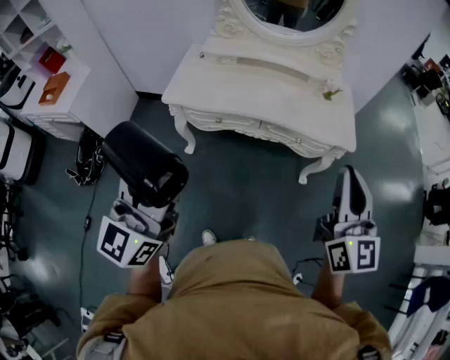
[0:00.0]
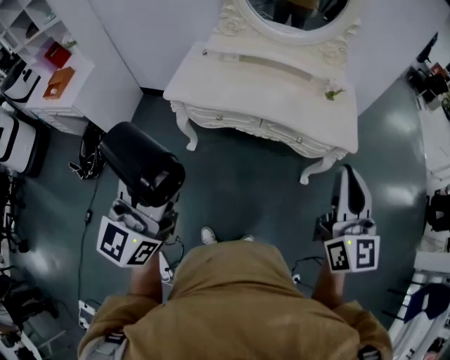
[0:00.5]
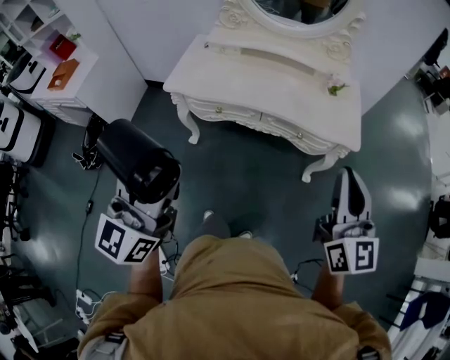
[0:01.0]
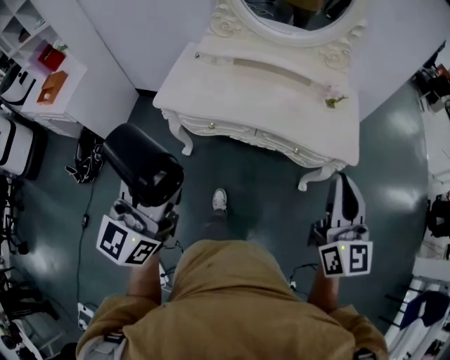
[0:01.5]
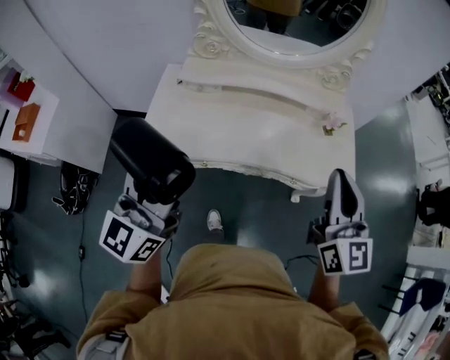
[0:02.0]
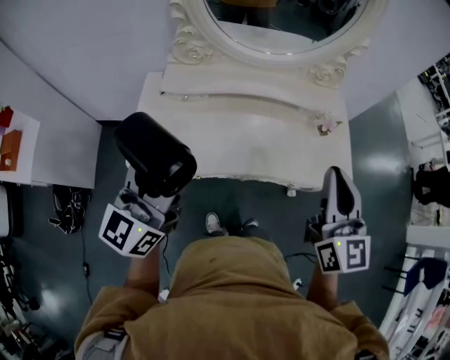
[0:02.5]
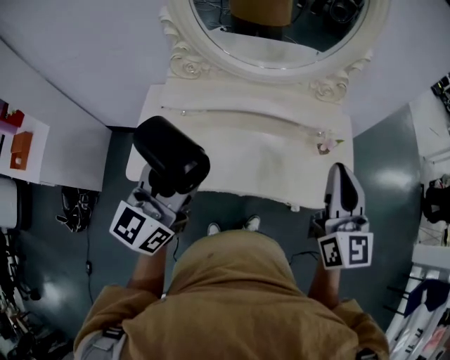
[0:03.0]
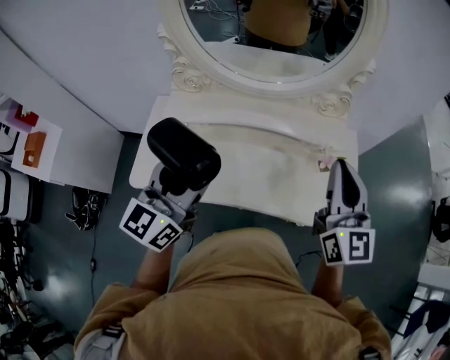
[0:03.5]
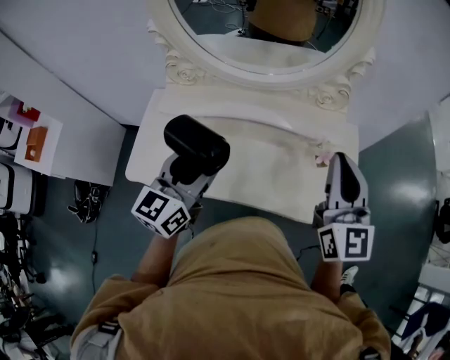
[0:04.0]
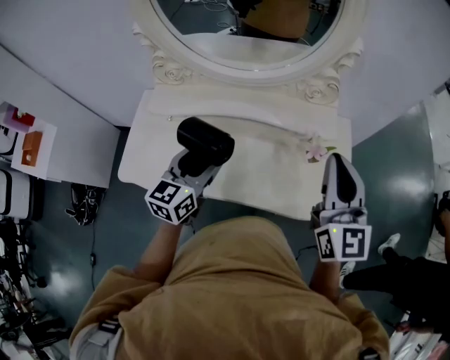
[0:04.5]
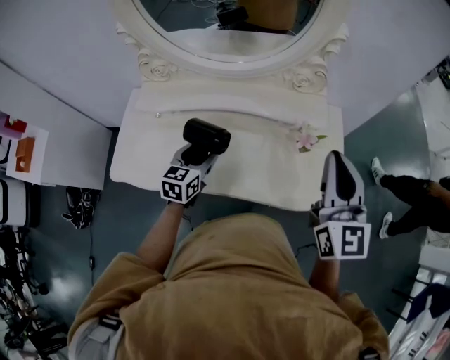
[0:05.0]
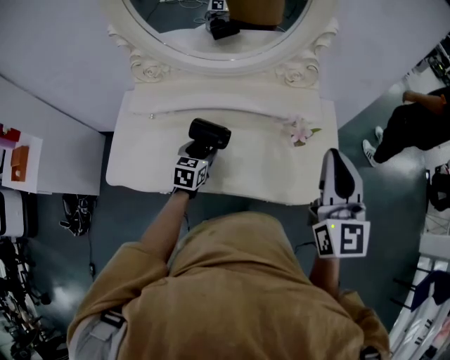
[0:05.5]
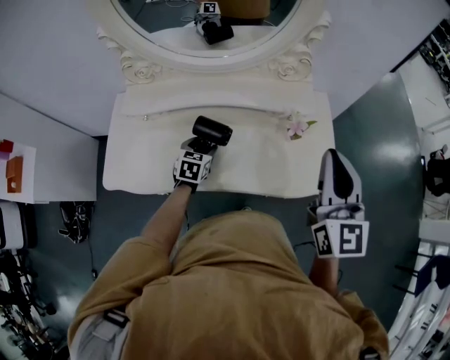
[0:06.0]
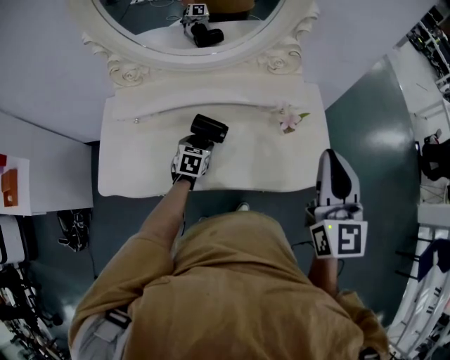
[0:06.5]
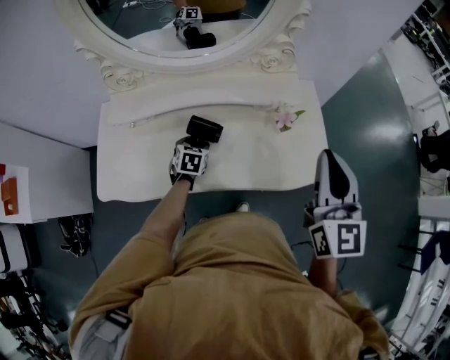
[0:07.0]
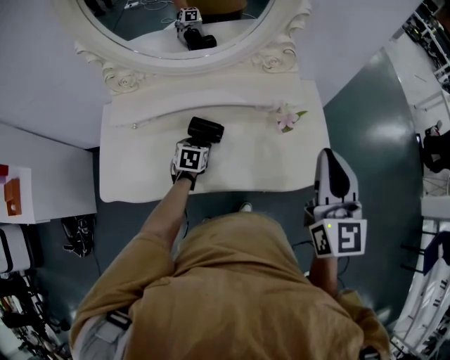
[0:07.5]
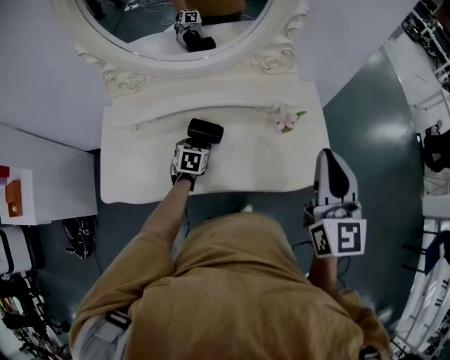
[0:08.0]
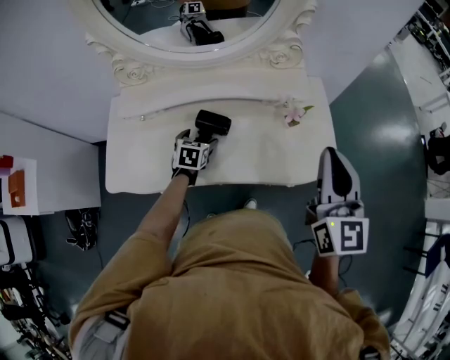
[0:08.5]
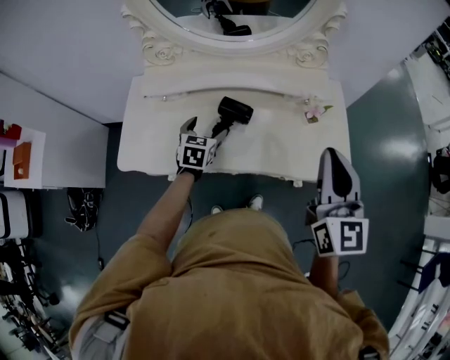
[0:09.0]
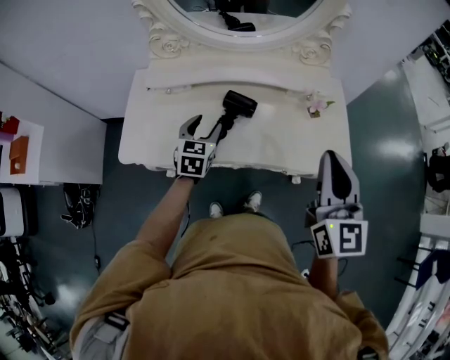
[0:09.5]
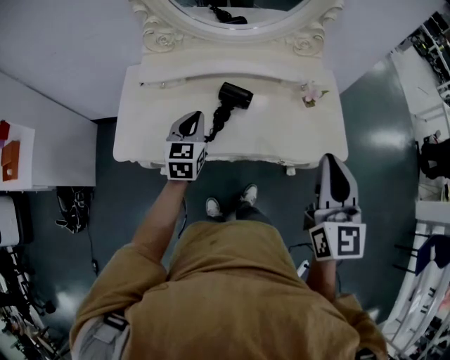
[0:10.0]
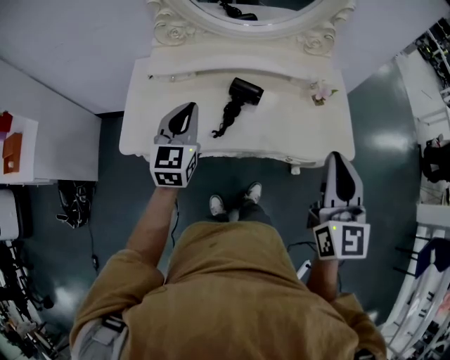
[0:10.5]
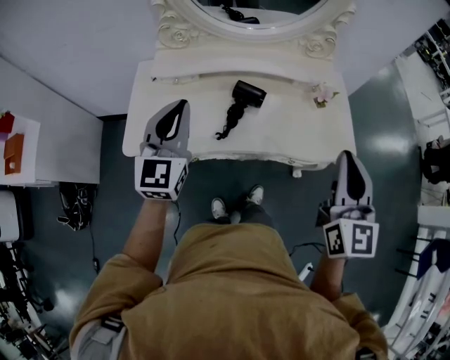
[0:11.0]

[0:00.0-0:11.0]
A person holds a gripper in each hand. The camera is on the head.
0:00.0 to 0:02.0: Both grippers move forward, approximately 25 cm.
0:02.0 to 0:03.5: The left gripper travels forward and to the right by approximately 25 cm; the right gripper goes about 20 cm forward.
0:03.5 to 0:05.5: The left gripper shifts about 30 cm downward, and tilts its fingers about 40 degrees downward. Meanwhile the right gripper goes some 10 cm to the right.
0:05.5 to 0:07.5: The left gripper heads downward, covering about 5 cm.
0:07.5 to 0:09.0: The right gripper is displaced to the left and backward by about 10 cm. The left gripper moves upward and backward, approximately 10 cm, and opens.
0:09.0 to 0:11.0: The left gripper heads upward, backward and to the left, covering roughly 30 cm, tips its fingers upward by roughly 40 degrees, and closes its fingers, while the right gripper goes approximately 10 cm backward.

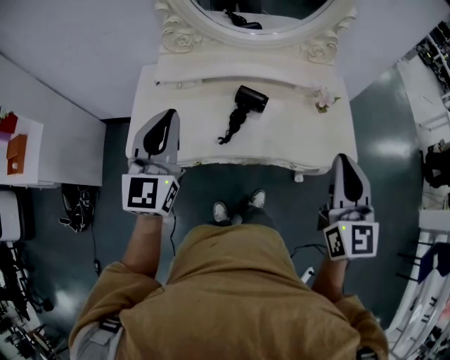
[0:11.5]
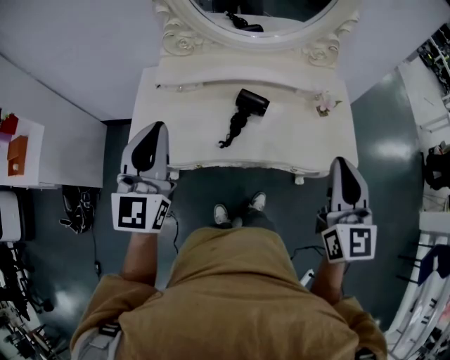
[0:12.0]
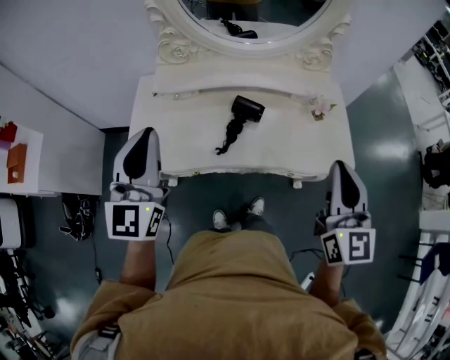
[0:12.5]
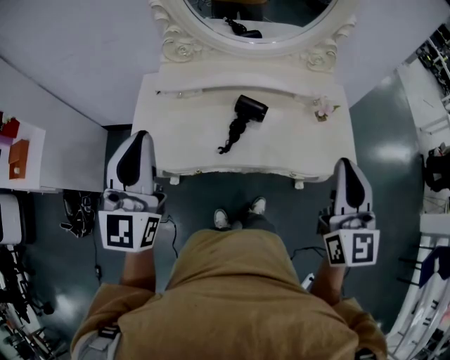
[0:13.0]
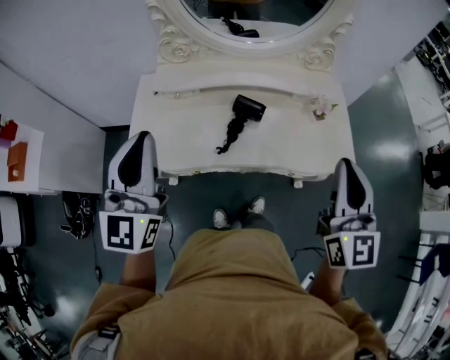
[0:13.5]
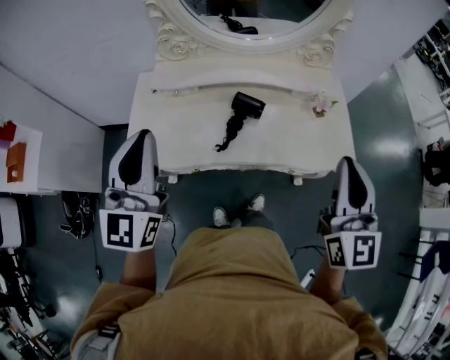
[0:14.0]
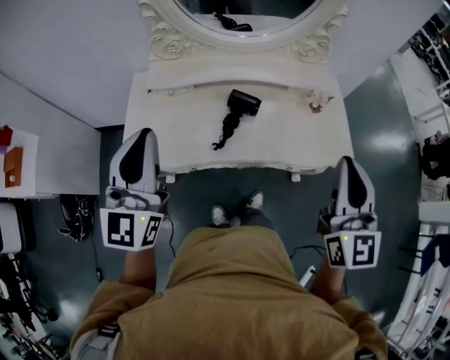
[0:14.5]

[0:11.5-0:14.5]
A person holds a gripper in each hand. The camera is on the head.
0:11.5 to 0:13.0: The left gripper travels upward by some 5 cm.
0:13.0 to 0:14.5: The grippers move only a little.

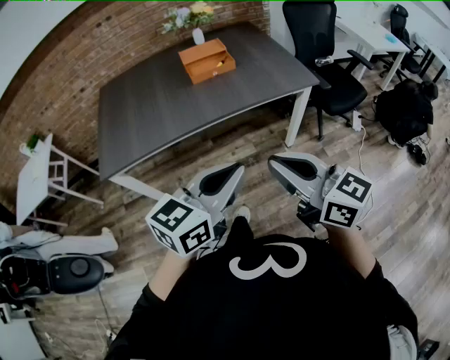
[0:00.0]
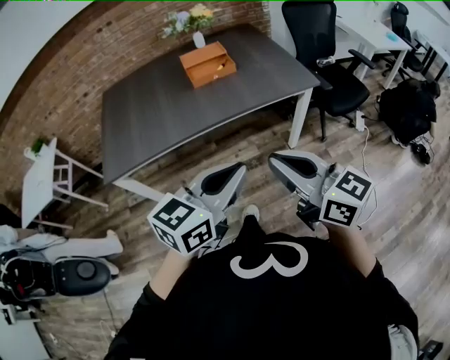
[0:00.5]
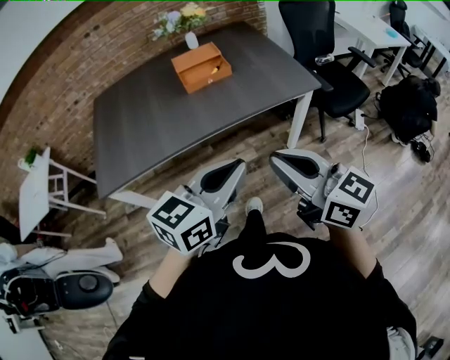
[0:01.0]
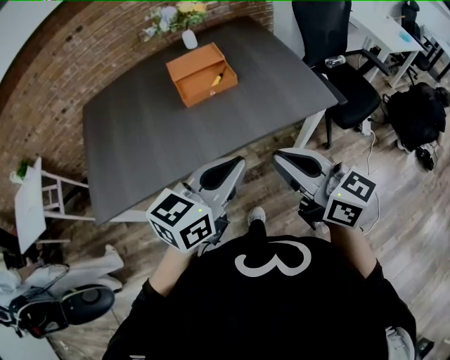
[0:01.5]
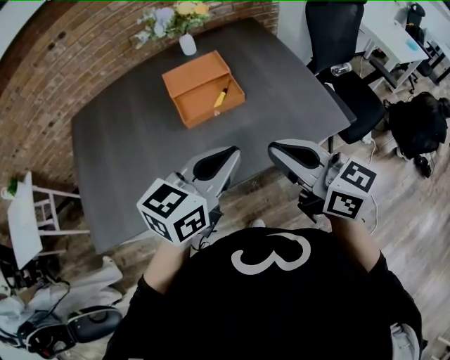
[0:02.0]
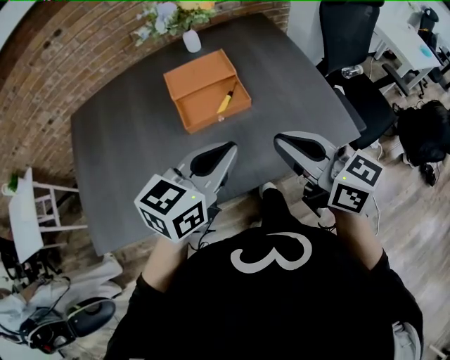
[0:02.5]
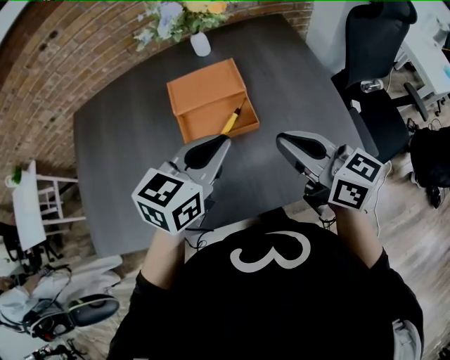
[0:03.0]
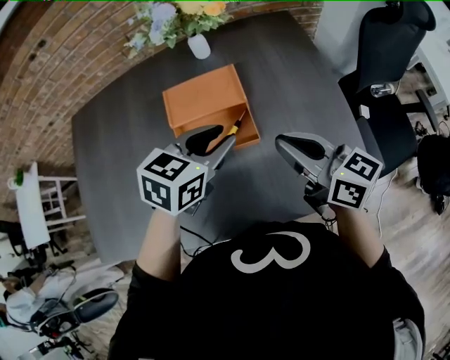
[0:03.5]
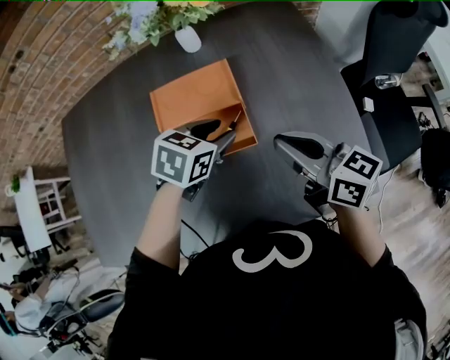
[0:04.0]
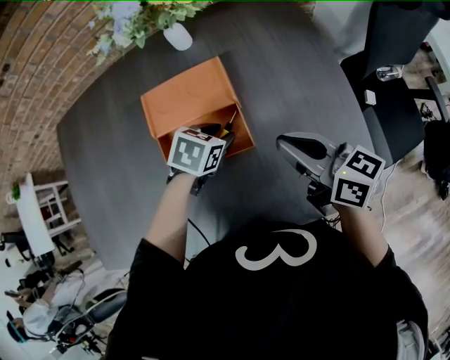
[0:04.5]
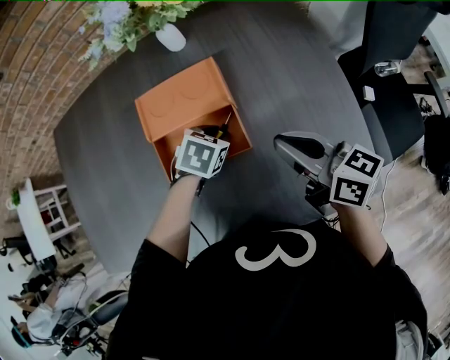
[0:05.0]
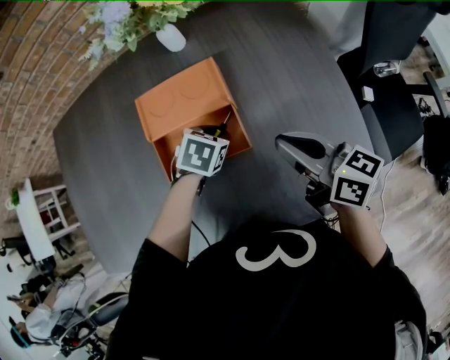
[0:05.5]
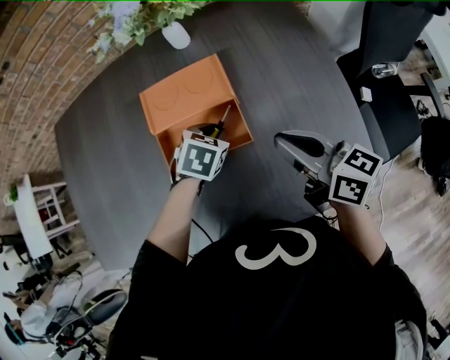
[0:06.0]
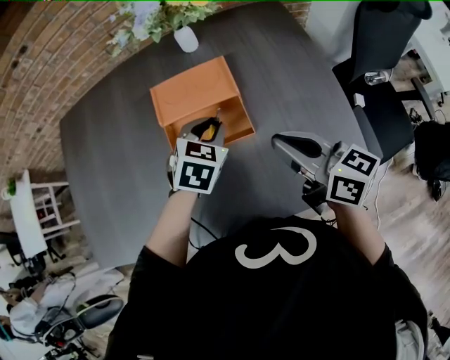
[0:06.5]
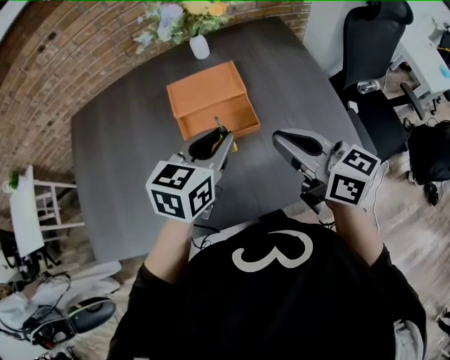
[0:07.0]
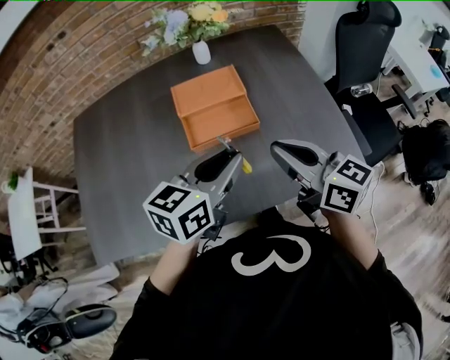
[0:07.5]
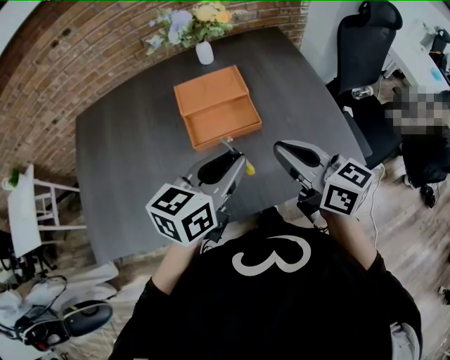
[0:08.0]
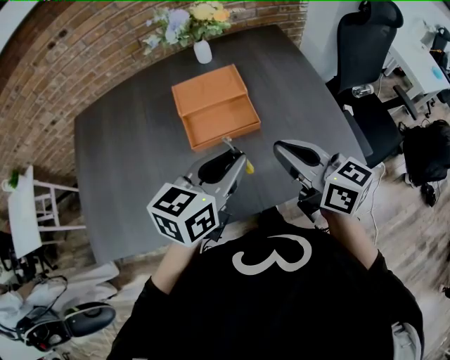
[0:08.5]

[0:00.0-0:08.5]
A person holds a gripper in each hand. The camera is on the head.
0:00.0 to 0:02.0: Both grippers travel together forward, roughly 35 cm.
0:02.0 to 0:04.0: The right gripper goes approximately 30 cm forward; the left gripper moves forward and downward, some 35 cm, points its fingers approximately 40 degrees further downward, and opens up.
0:04.0 to 0:06.5: The left gripper travels downward and back again, roughly 10 cm each way, changes its angle by roughly 20 degrees, and closes.
0:06.5 to 0:08.5: The left gripper heads backward and upward, covering approximately 20 cm, and turns by about 40 degrees. Meanwhile the right gripper heads backward, covering roughly 10 cm.

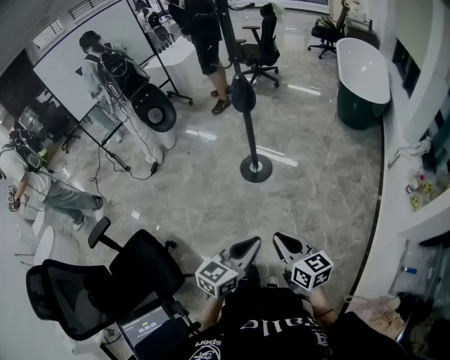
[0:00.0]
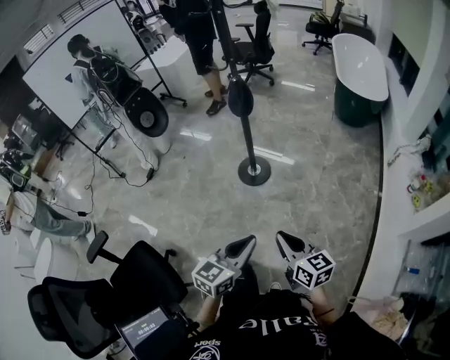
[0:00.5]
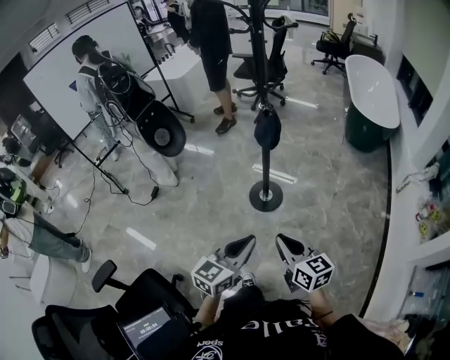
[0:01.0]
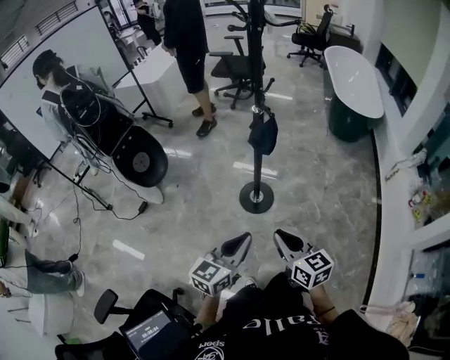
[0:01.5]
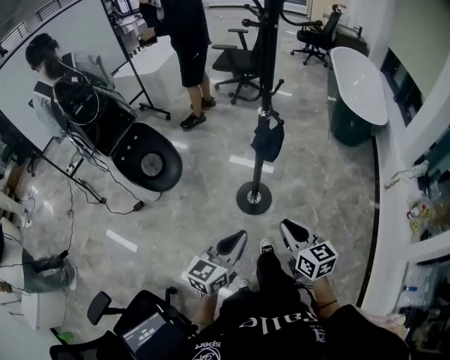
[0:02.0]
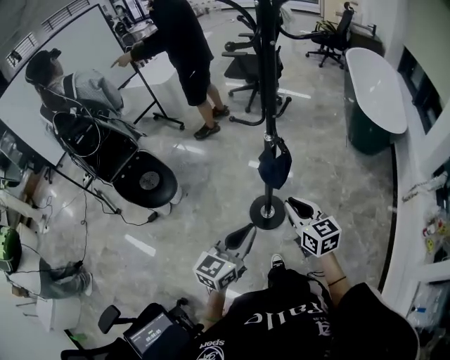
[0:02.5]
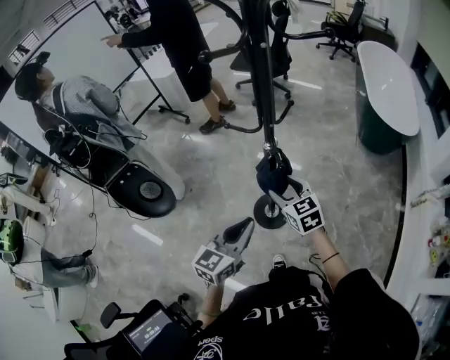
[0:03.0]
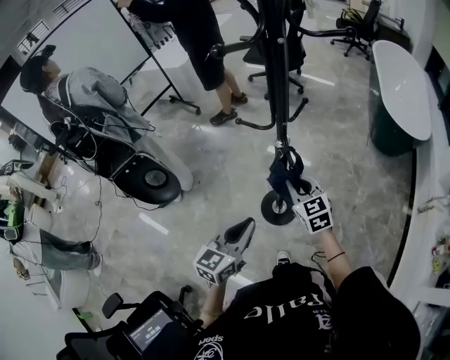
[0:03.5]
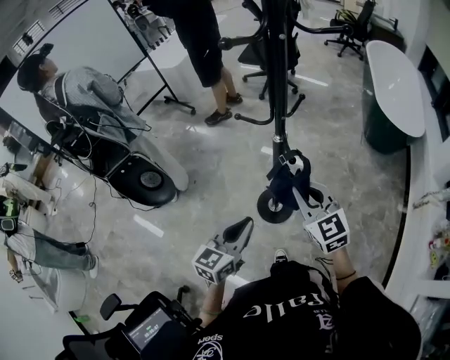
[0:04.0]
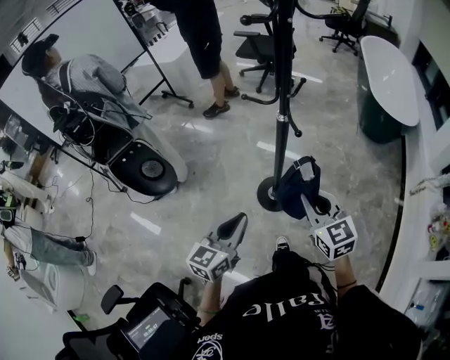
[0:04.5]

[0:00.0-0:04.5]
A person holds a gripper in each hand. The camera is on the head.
0:00.0 to 0:02.0: The two grippers travel together, forward and to the left, some 50 cm.
0:02.0 to 0:04.5: The grippers both shift forward by some 15 cm. The right gripper opens and closes again.
